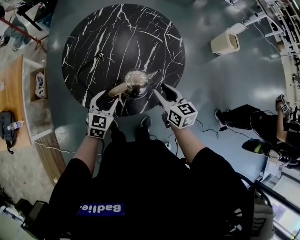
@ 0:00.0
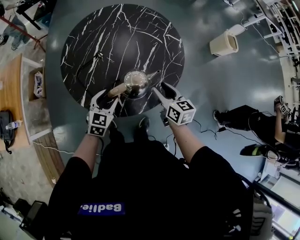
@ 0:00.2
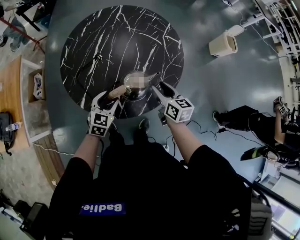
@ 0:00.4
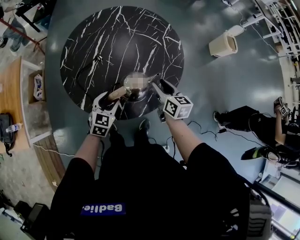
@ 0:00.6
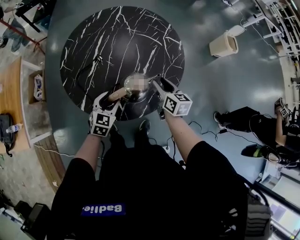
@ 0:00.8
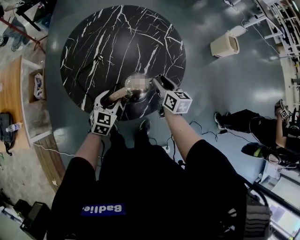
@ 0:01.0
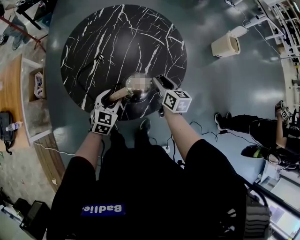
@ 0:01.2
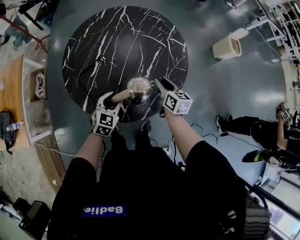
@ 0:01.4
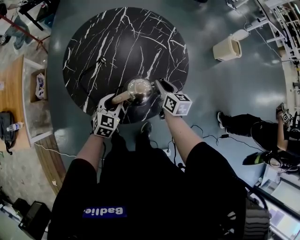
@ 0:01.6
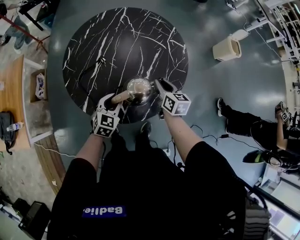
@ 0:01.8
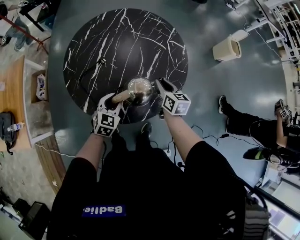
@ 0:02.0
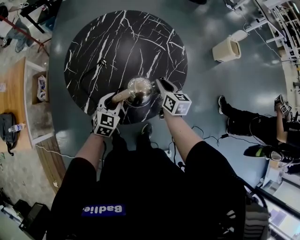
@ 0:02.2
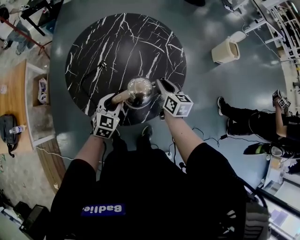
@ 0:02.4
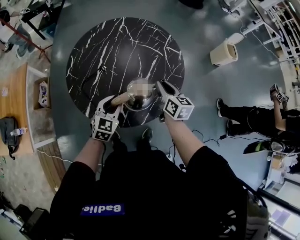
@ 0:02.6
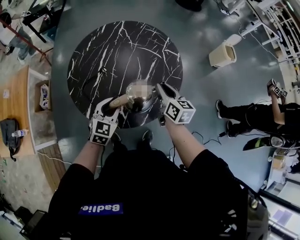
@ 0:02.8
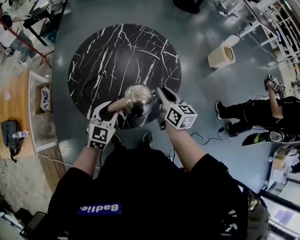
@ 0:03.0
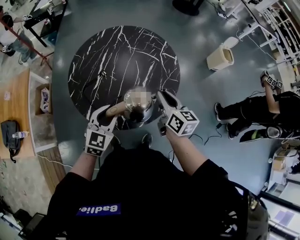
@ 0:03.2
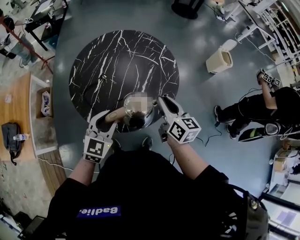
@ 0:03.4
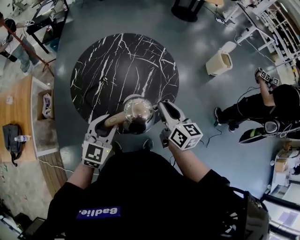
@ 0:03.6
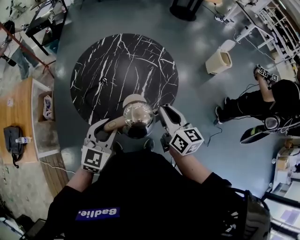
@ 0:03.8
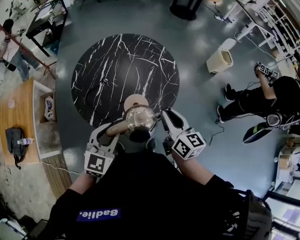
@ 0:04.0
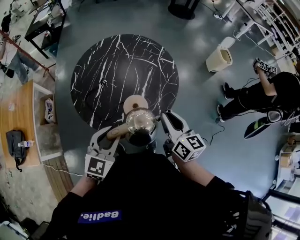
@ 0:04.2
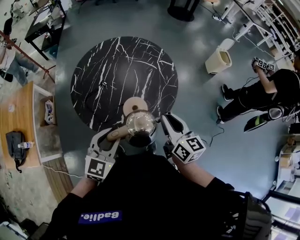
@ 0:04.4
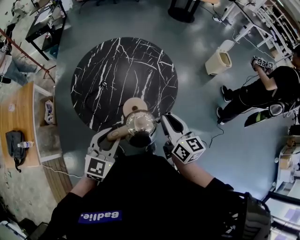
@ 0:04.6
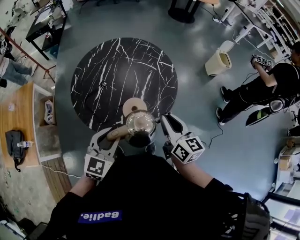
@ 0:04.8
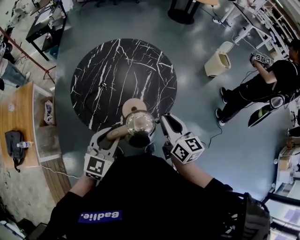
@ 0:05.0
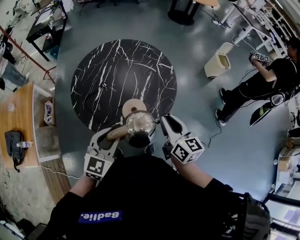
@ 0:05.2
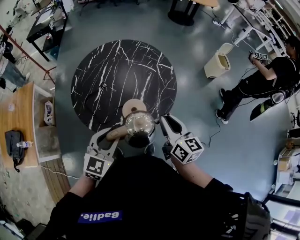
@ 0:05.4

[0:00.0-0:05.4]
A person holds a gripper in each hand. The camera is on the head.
0:00.0 to 0:01.4: The left gripper ends up roughly 5 cm from where it was, while the right gripper goes about 10 cm forward and downward.
0:01.4 to 0:02.8: Both grippers move upward, some 10 cm.
0:02.8 to 0:04.0: The right gripper shifts roughly 15 cm backward and upward; the left gripper heads upward and backward, covering approximately 15 cm.
0:04.0 to 0:05.4: Neither gripper changes place.

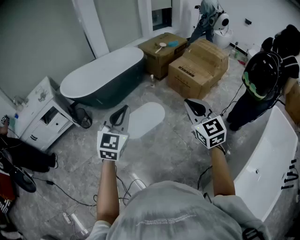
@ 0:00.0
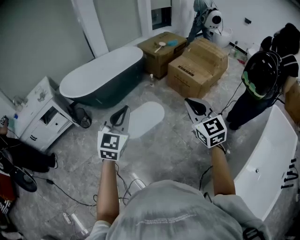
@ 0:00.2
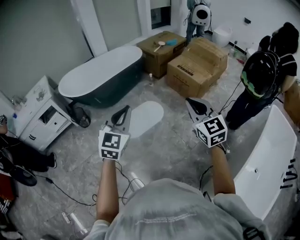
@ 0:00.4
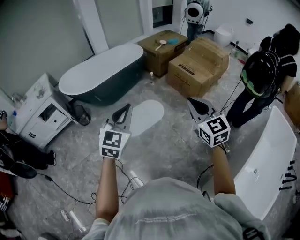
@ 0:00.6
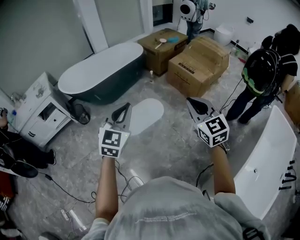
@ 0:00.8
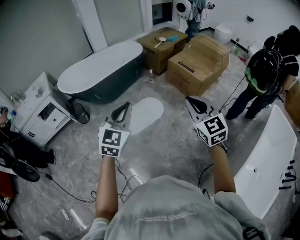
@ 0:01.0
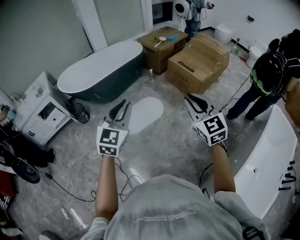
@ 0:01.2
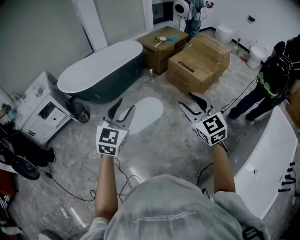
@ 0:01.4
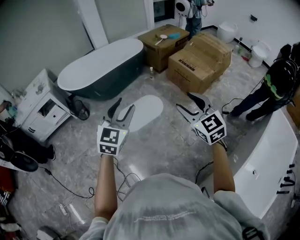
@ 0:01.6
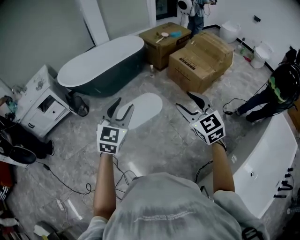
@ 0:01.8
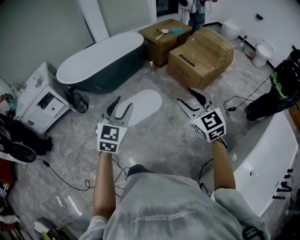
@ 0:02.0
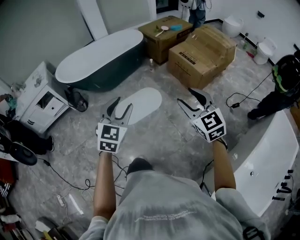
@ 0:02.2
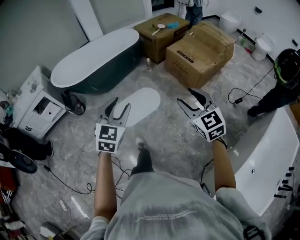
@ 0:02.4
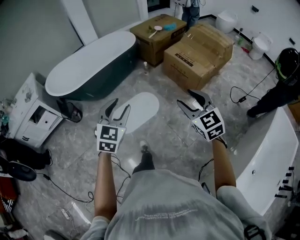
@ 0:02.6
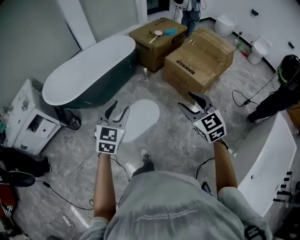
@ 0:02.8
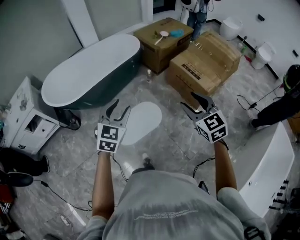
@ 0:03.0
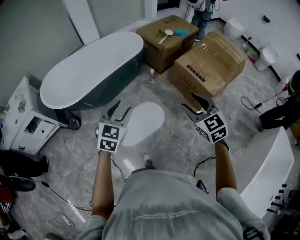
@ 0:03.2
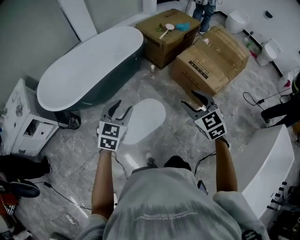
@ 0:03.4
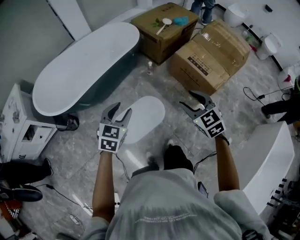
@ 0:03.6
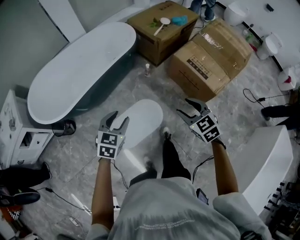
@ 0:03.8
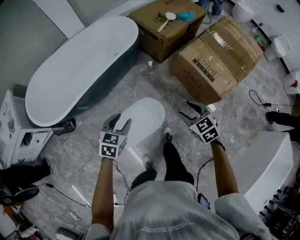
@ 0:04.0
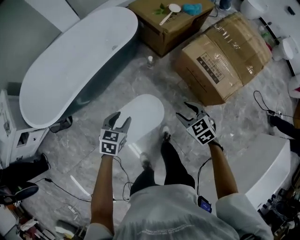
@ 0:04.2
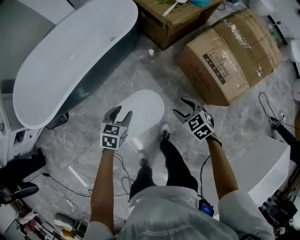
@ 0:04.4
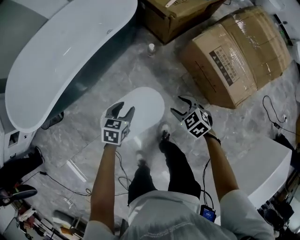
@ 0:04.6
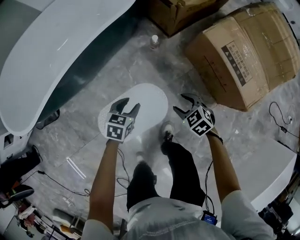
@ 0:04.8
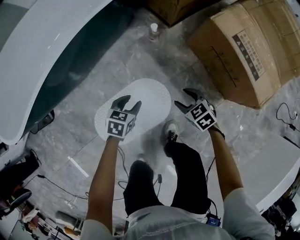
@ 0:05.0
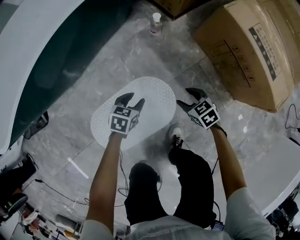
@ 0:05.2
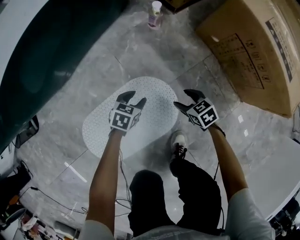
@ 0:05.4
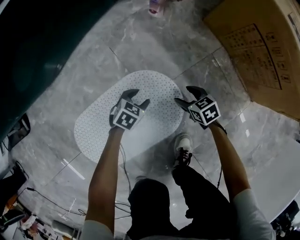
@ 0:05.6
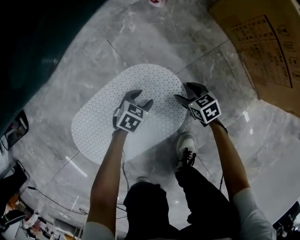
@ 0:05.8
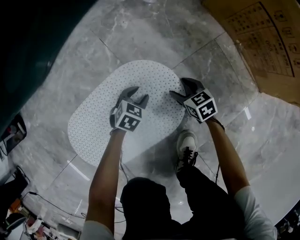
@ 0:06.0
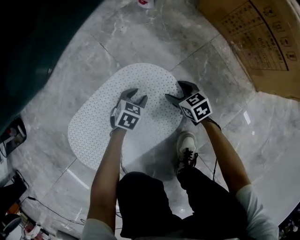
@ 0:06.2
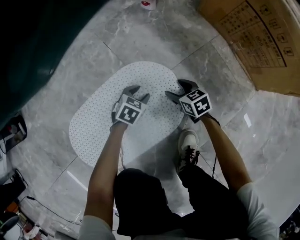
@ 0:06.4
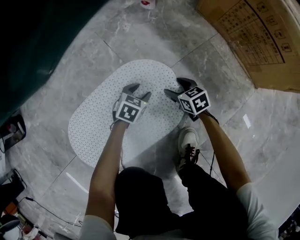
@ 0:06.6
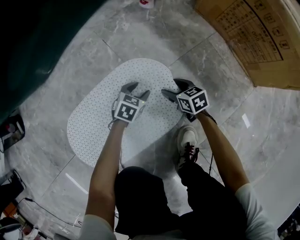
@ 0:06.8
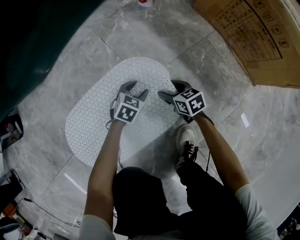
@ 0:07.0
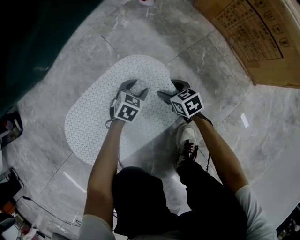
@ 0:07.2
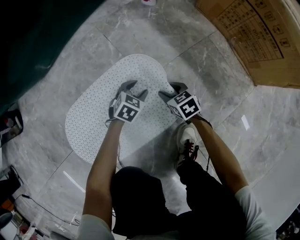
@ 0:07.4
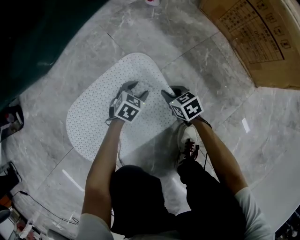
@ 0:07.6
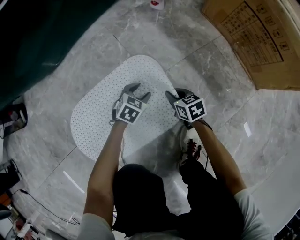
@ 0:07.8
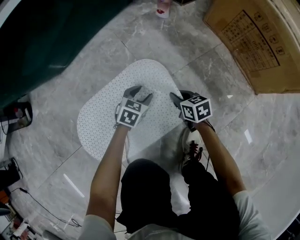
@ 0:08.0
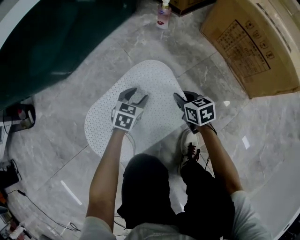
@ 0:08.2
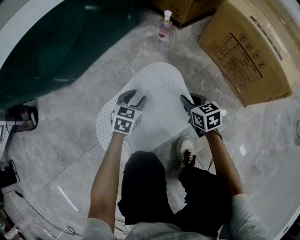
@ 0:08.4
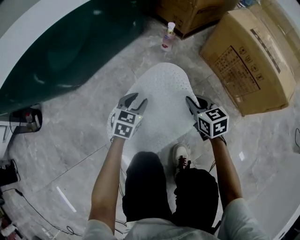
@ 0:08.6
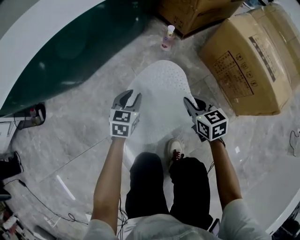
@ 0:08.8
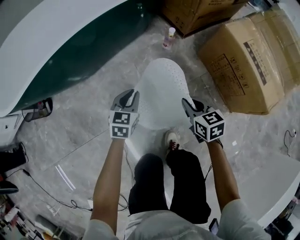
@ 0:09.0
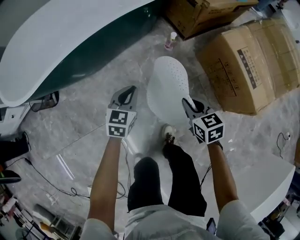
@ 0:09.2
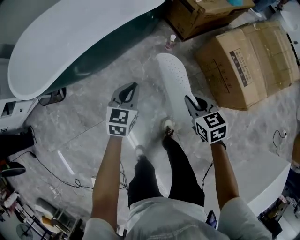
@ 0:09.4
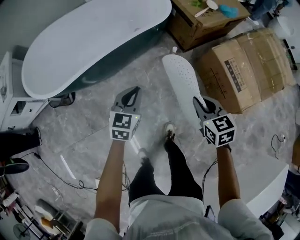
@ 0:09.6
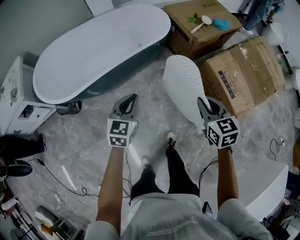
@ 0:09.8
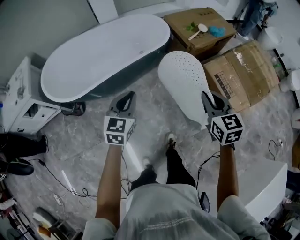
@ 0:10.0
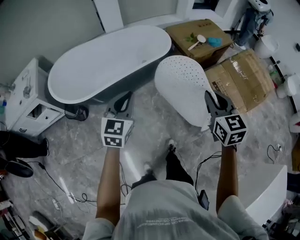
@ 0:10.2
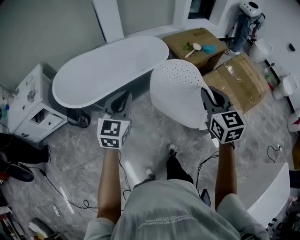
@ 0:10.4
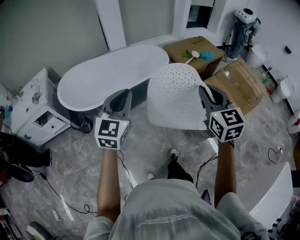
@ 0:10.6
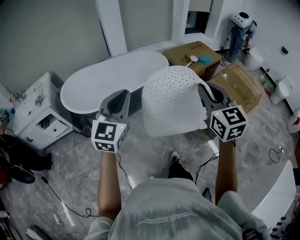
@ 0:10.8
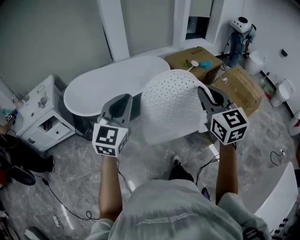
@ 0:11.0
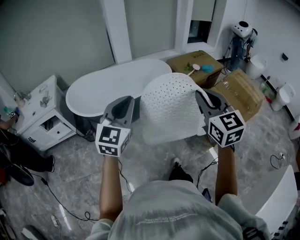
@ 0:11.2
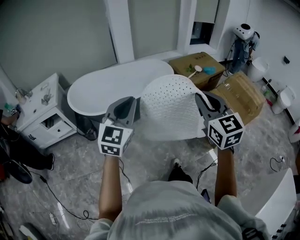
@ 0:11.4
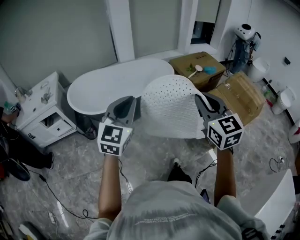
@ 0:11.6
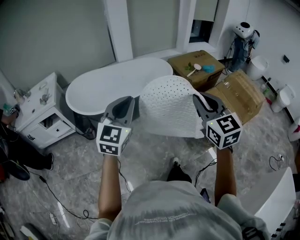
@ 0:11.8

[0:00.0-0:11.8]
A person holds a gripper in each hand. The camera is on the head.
0:00.0 to 0:01.4: The right gripper opens its fingers; the left gripper opens up.
0:01.4 to 0:03.0: Both grippers travel together forward, roughly 30 cm.
0:03.0 to 0:04.4: Both grippers travel together forward and downward, roughly 50 cm. The right gripper swivels approximately 30 degrees; the left gripper rotates approximately 40 degrees.
0:04.4 to 0:06.0: The two grippers go some 70 cm downward. The left gripper rotates roughly 20 degrees. Meanwhile the right gripper changes its angle by approximately 20 degrees.
0:06.0 to 0:07.4: The right gripper is displaced backward and to the left by approximately 5 cm.
0:07.4 to 0:08.8: Both grippers move upward, approximately 30 cm. The right gripper closes up; the left gripper swivels approximately 30 degrees, and closes up.
0:08.8 to 0:10.4: Both grippers travel together upward, approximately 80 cm. The right gripper swivels approximately 30 degrees. The left gripper changes its angle by about 30 degrees, and closes its fingers.
0:10.4 to 0:11.8: The right gripper travels backward, to the left and upward by some 15 cm. The left gripper heads backward and upward, covering roughly 15 cm.

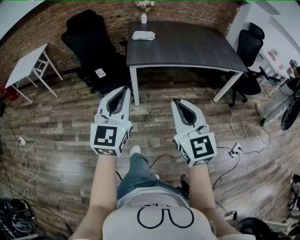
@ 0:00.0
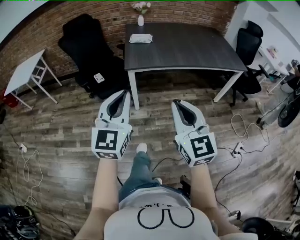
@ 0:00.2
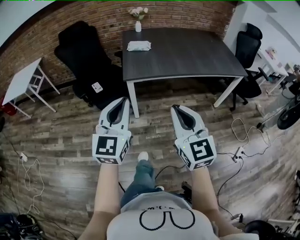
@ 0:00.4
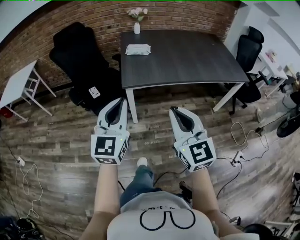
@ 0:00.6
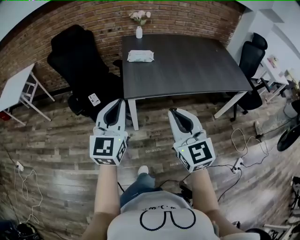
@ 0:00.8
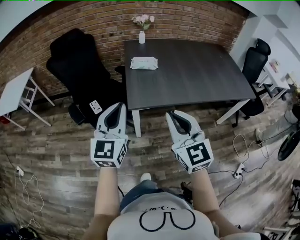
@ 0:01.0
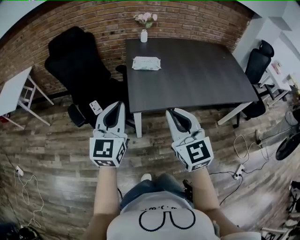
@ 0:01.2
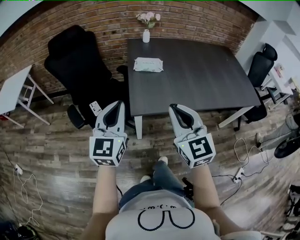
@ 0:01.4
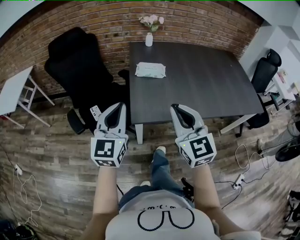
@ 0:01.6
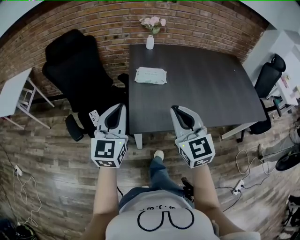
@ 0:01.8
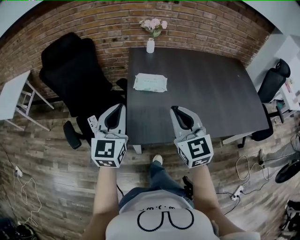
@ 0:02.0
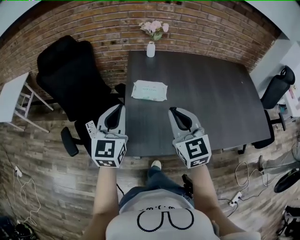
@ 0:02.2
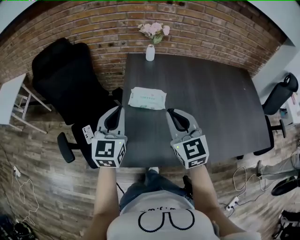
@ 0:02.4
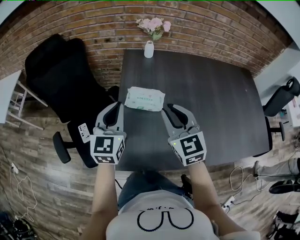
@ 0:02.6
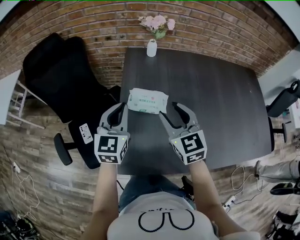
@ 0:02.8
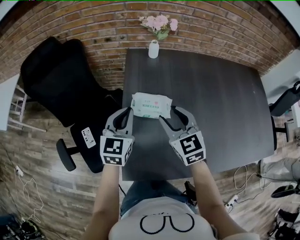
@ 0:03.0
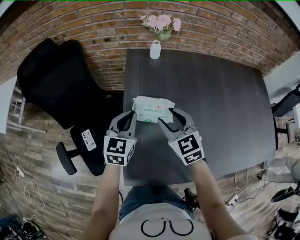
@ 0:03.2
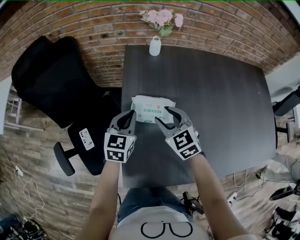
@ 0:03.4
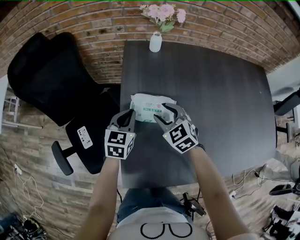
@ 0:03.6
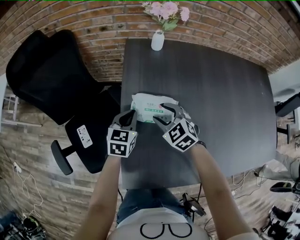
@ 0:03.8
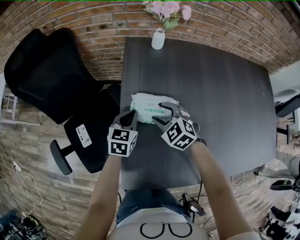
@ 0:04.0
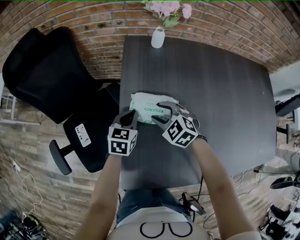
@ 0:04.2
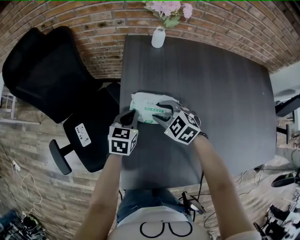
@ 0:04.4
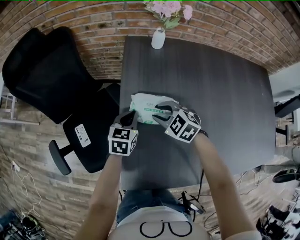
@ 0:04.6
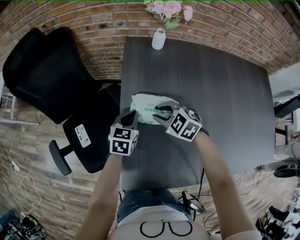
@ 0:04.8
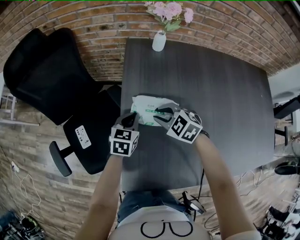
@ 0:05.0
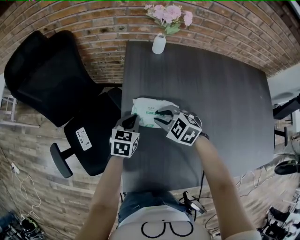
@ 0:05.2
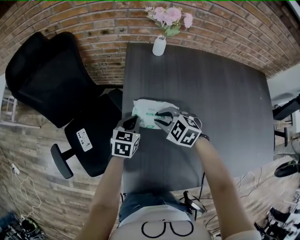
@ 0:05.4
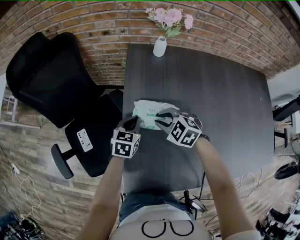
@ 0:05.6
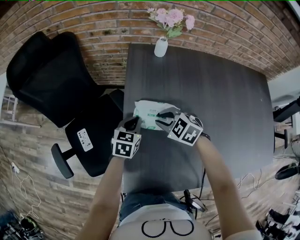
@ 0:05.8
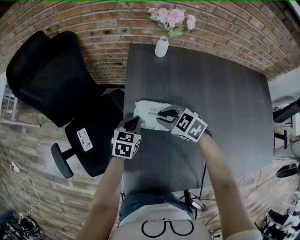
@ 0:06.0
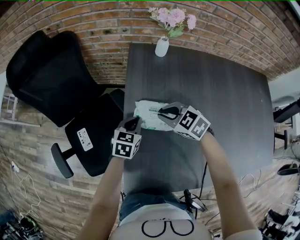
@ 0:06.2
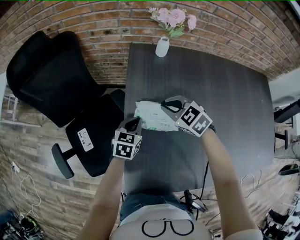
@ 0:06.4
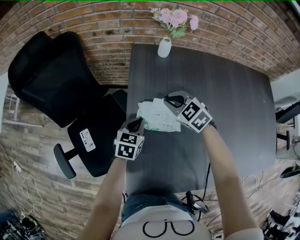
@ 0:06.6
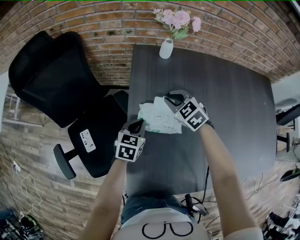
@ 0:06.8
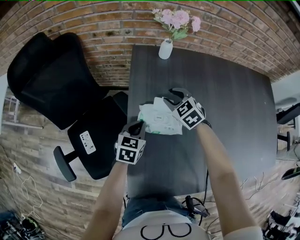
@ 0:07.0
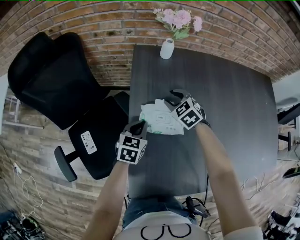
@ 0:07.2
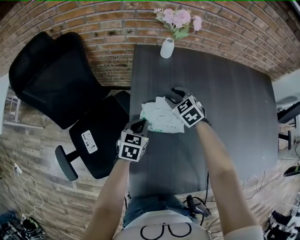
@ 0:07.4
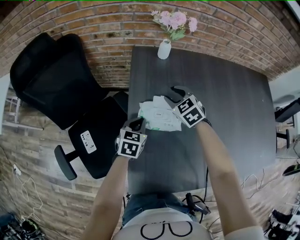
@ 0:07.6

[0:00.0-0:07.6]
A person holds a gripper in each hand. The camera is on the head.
0:00.0 to 0:01.6: Both grippers are carried forward, roughly 50 cm.
0:01.6 to 0:03.0: Both grippers move forward, approximately 40 cm. The right gripper opens its fingers.
0:03.0 to 0:04.6: The left gripper is displaced downward by roughly 20 cm, and changes its angle by approximately 30 degrees, while the right gripper moves downward and forward, roughly 20 cm, and changes its angle by some 40 degrees.
0:04.6 to 0:06.0: The grippers make only small movements.
0:06.0 to 0:07.6: The right gripper goes some 10 cm forward, changes its angle by about 30 degrees, and opens up.
